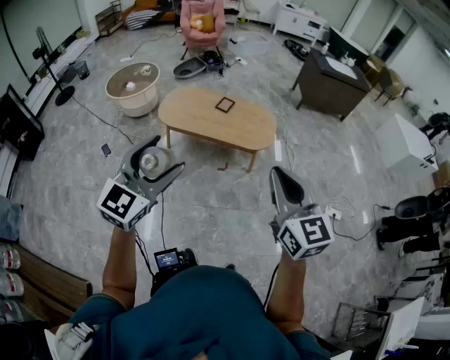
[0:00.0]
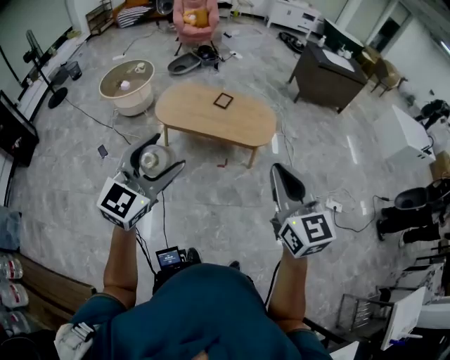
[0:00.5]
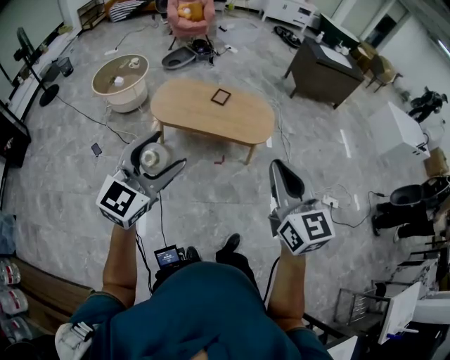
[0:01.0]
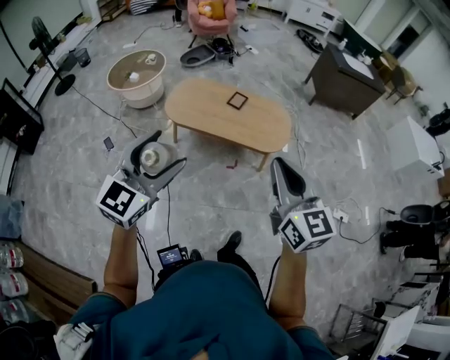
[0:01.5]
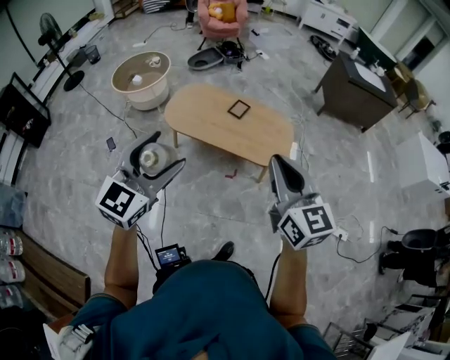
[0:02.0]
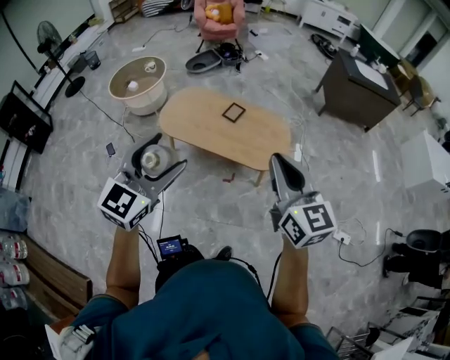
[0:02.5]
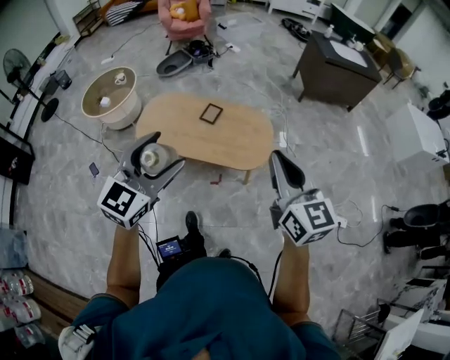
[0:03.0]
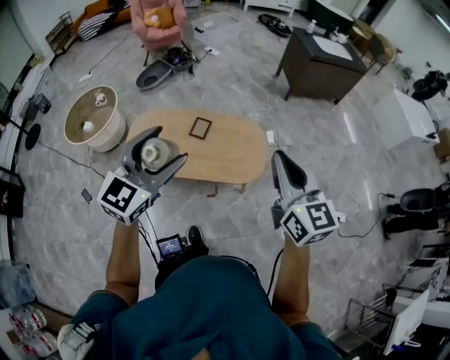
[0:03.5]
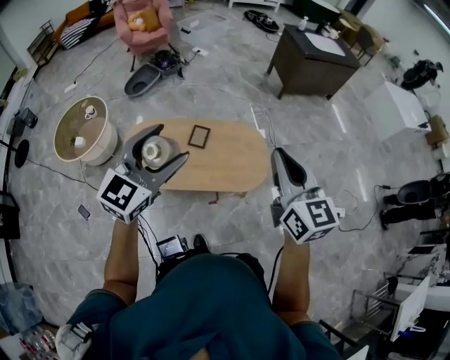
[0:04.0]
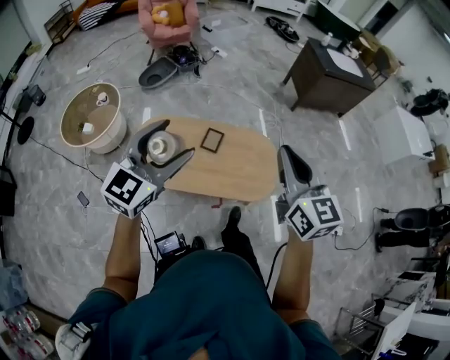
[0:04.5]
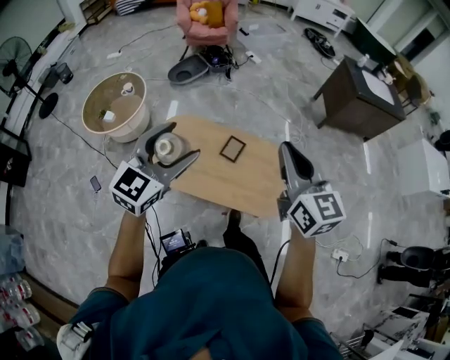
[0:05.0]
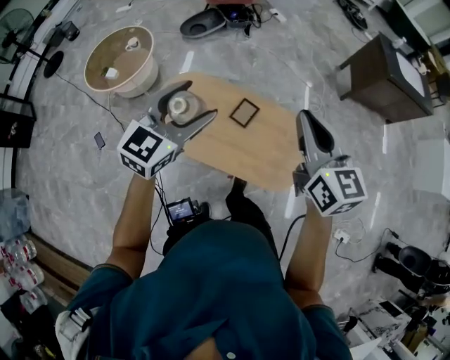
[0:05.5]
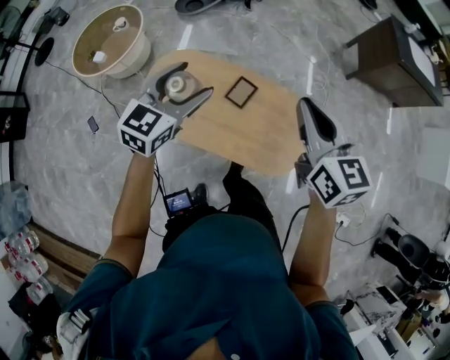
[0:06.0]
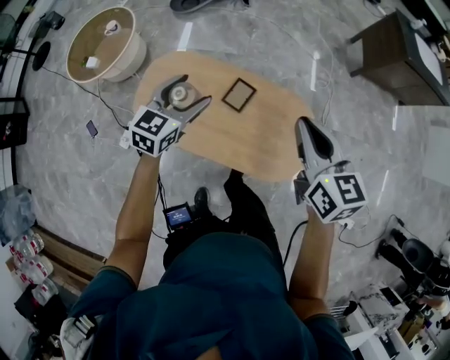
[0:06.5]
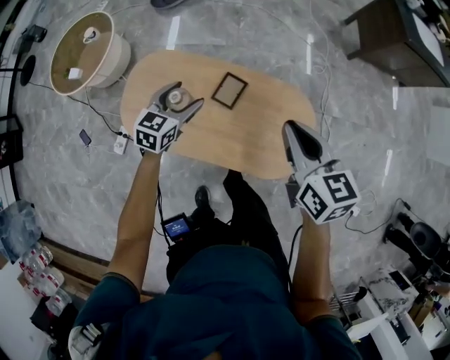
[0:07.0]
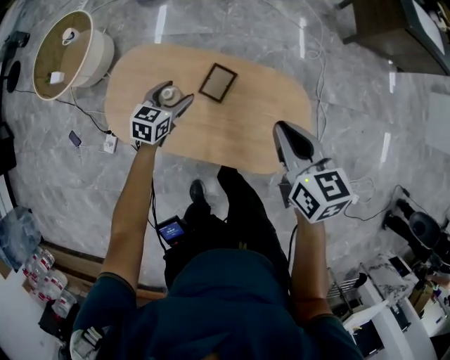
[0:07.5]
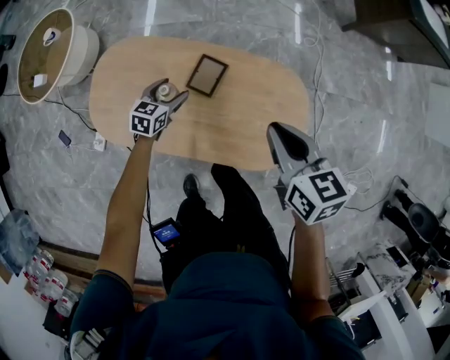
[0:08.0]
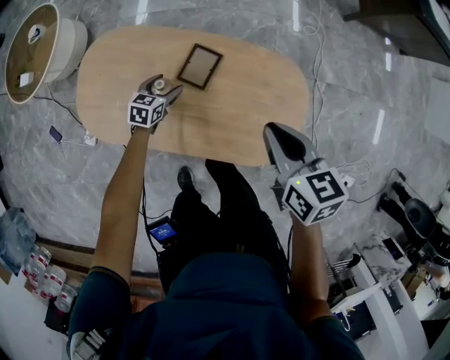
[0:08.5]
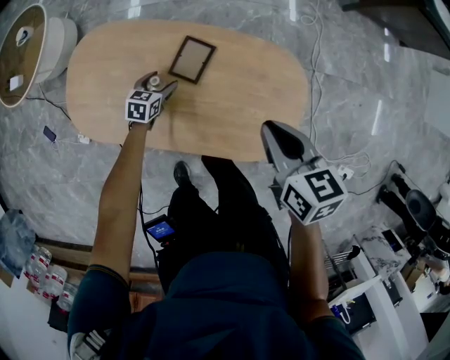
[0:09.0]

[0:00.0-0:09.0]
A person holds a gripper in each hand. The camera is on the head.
0:00.0 to 0:02.0: The two grippers go some 20 cm forward.
0:02.0 to 0:04.5: Both grippers move forward, some 40 cm.
0:04.5 to 0:07.0: The grippers both shift downward and forward by about 40 cm. The right gripper rotates approximately 30 degrees; the left gripper rotates about 40 degrees.
0:07.0 to 0:09.0: The left gripper moves downward, some 35 cm, and rotates some 20 degrees, while the right gripper is displaced downward by about 20 cm.

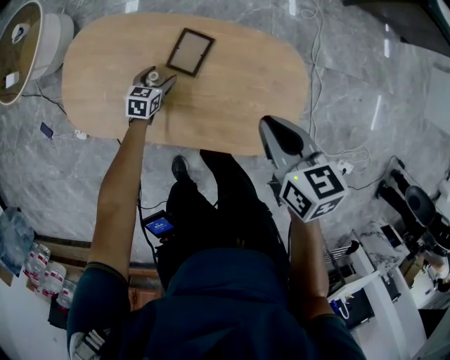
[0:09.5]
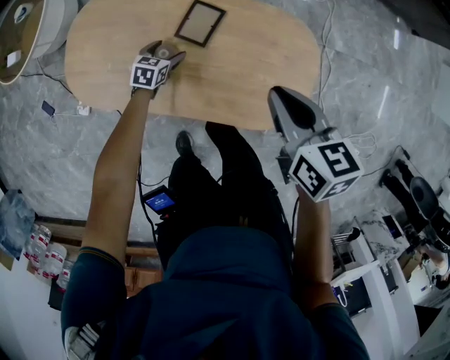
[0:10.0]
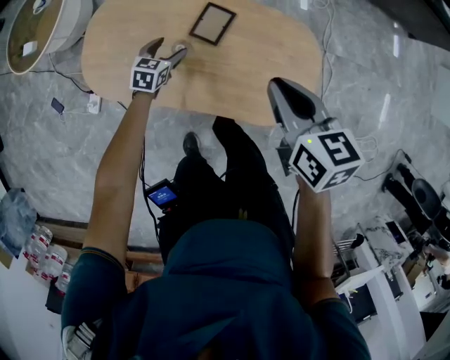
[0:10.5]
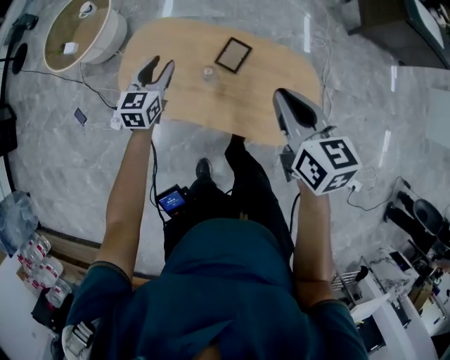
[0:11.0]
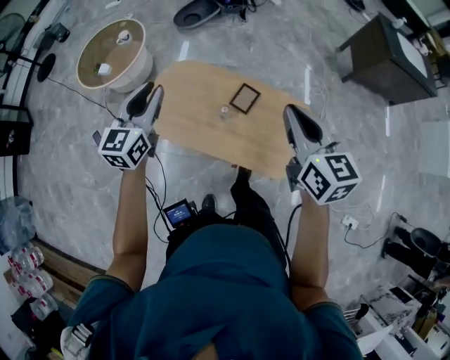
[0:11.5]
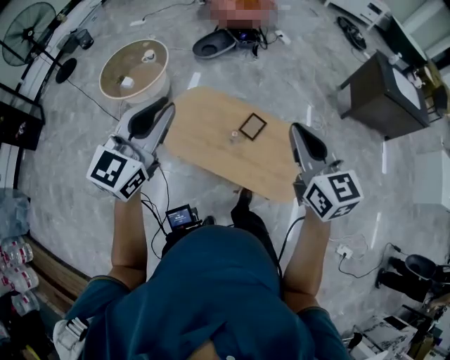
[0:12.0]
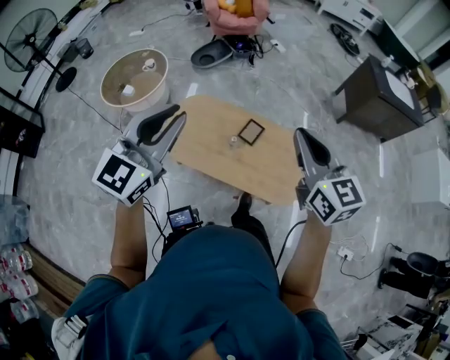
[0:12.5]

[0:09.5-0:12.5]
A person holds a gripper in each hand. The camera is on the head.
0:09.5 to 0:11.0: The right gripper goes roughly 20 cm upward, while the left gripper shifts roughly 35 cm upward, rotates approximately 30 degrees, and closes up.
0:11.0 to 0:12.5: The right gripper is displaced upward by some 25 cm, and turns by some 30 degrees; the left gripper moves upward and backward, about 50 cm, and changes its angle by about 30 degrees.

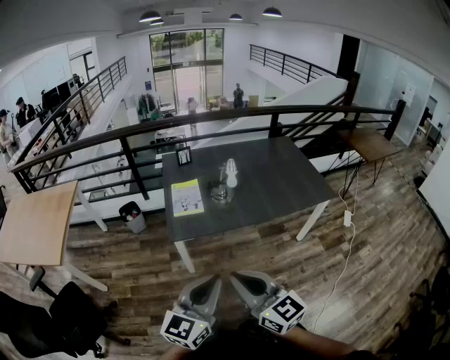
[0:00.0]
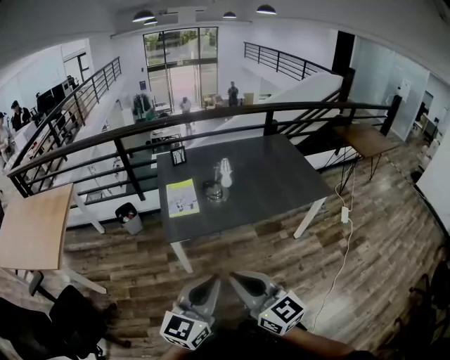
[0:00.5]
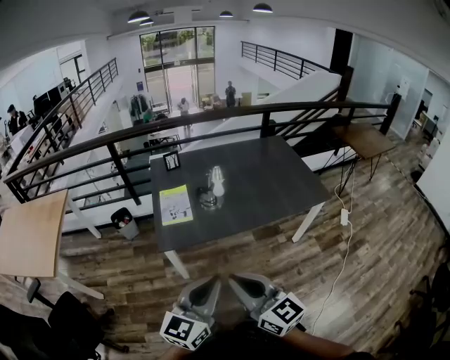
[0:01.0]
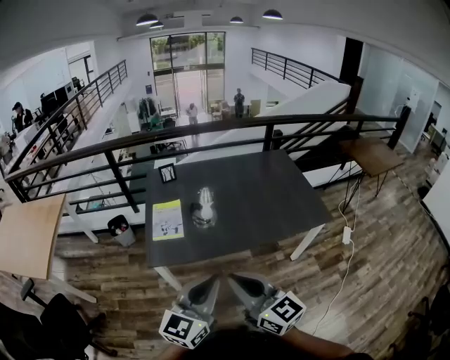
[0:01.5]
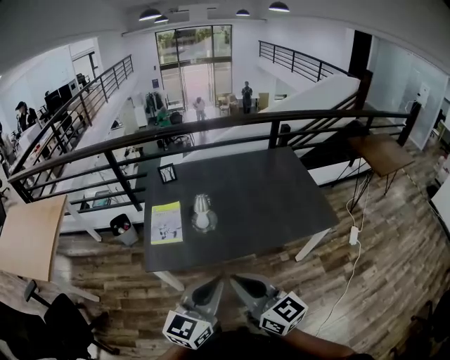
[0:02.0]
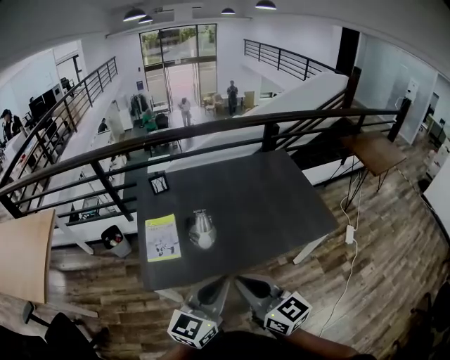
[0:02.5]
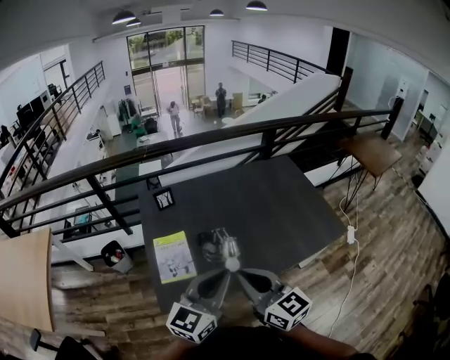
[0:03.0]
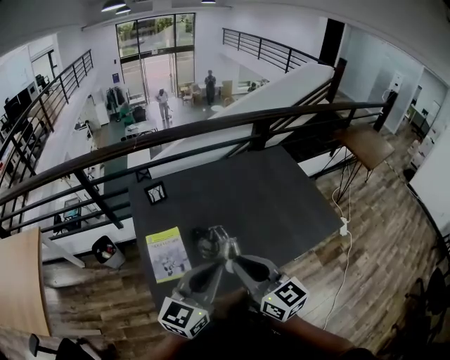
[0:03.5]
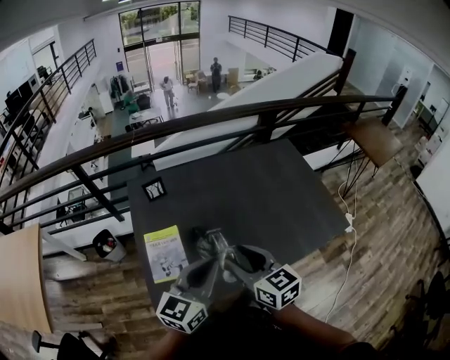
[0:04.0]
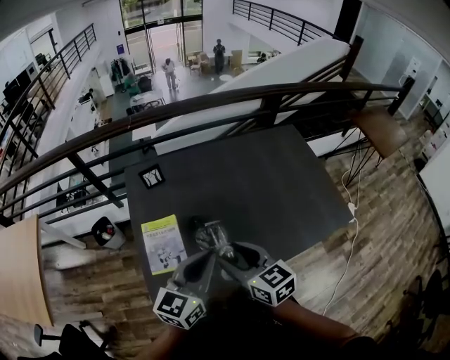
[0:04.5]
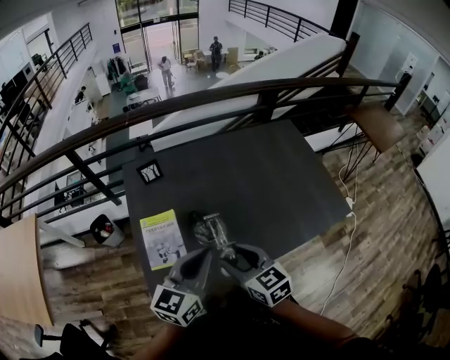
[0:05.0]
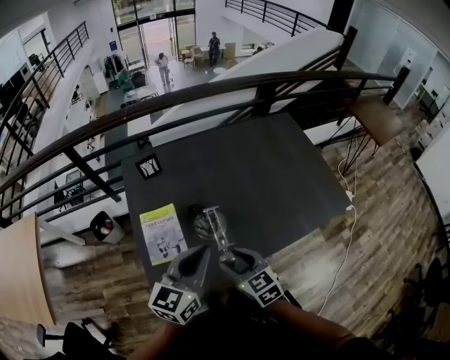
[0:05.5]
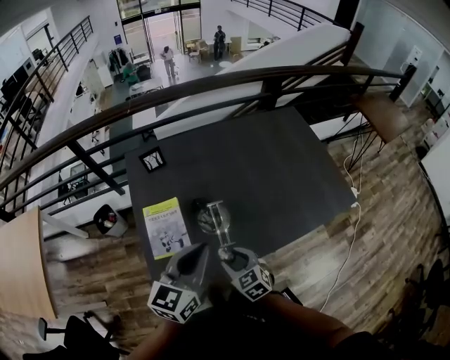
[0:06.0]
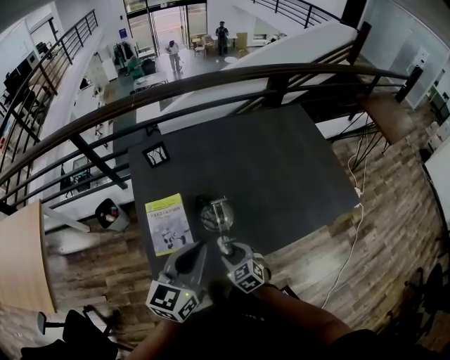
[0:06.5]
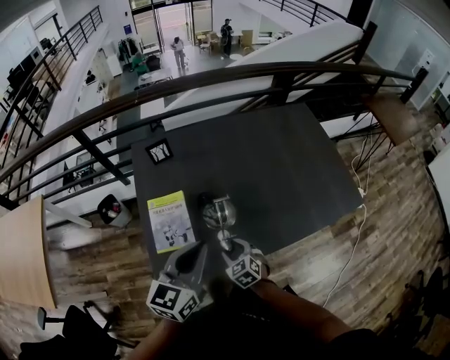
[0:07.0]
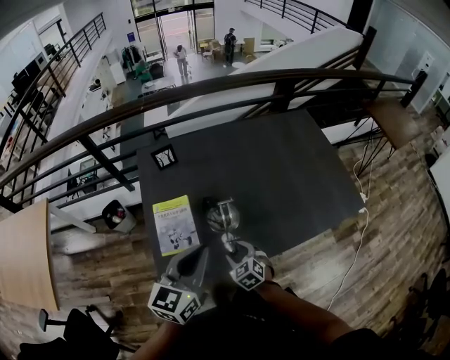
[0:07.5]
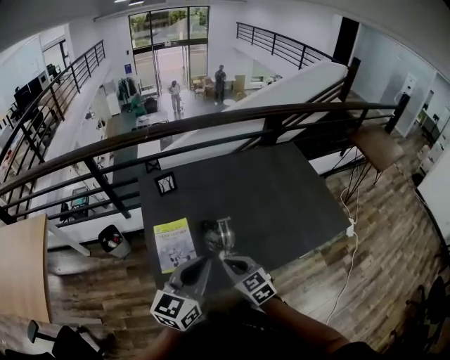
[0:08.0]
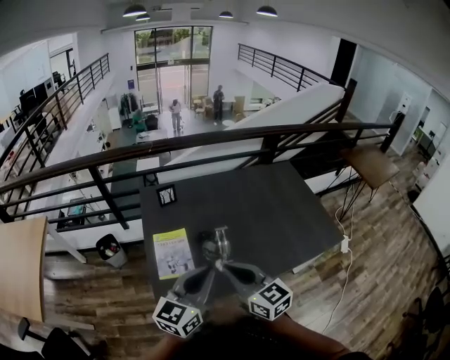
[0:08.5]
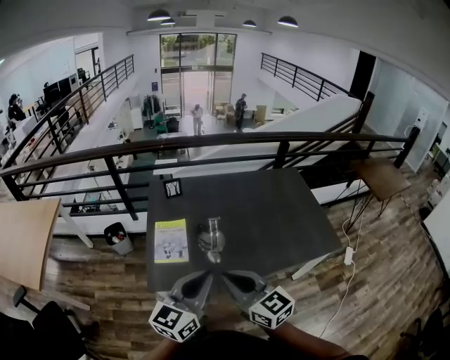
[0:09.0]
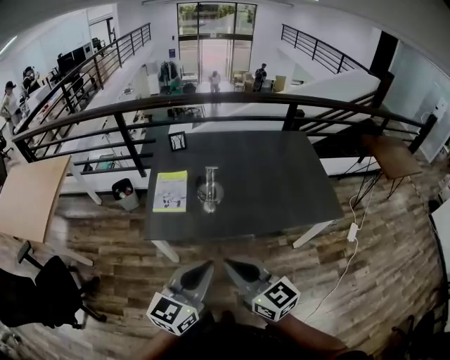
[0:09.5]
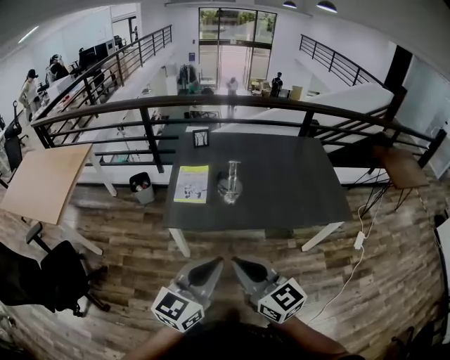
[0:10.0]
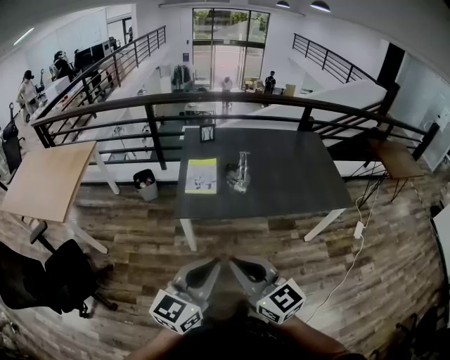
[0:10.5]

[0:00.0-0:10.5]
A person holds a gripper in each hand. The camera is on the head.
0:00.0 to 0:02.0: The grippers both shift forward and to the right by approximately 25 cm.
0:02.0 to 0:04.0: The left gripper moves forward and to the left, about 30 cm. Meanwhile the right gripper moves forward, approximately 30 cm, changes its angle by about 20 degrees, and opens up.
0:04.0 to 0:06.5: The left gripper changes place by some 5 cm. The right gripper shifts about 25 cm downward, and swivels about 30 degrees.
0:06.5 to 0:08.5: The left gripper is displaced backward and upward by approximately 10 cm. The right gripper moves upward, about 30 cm, angles its fingers upward, by some 40 degrees, and closes its fingers.
0:08.5 to 0:10.5: The two grippers go some 35 cm backward.

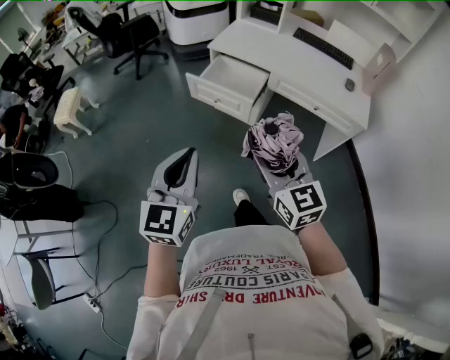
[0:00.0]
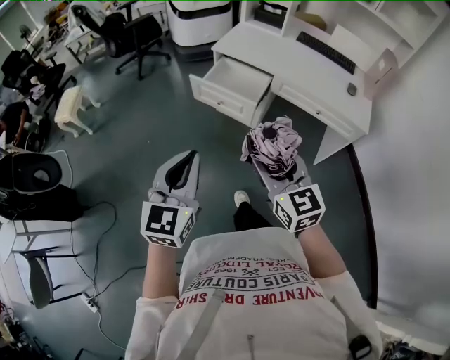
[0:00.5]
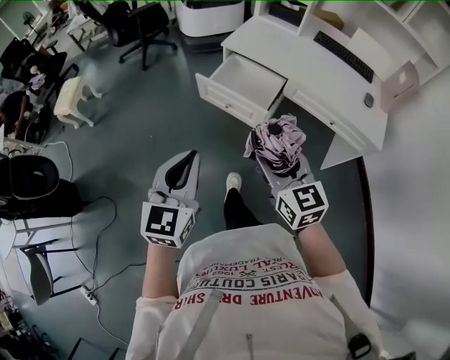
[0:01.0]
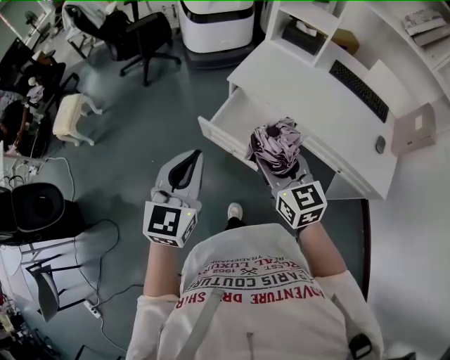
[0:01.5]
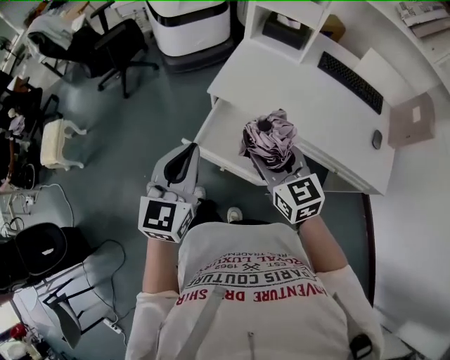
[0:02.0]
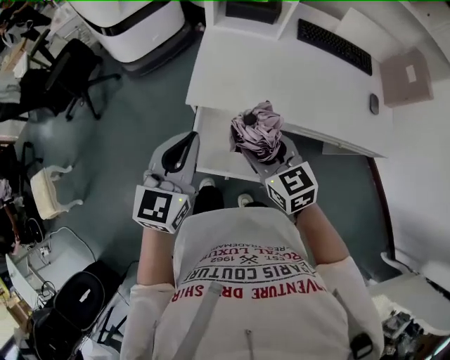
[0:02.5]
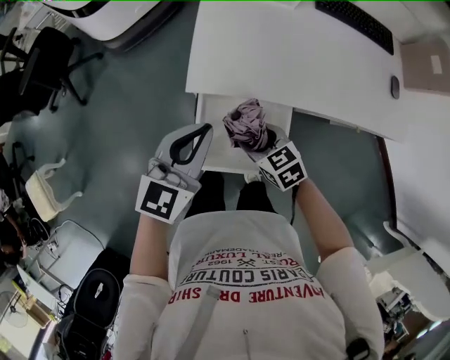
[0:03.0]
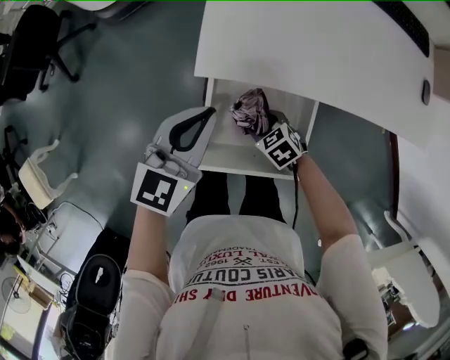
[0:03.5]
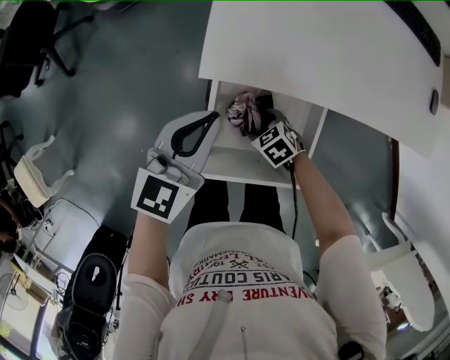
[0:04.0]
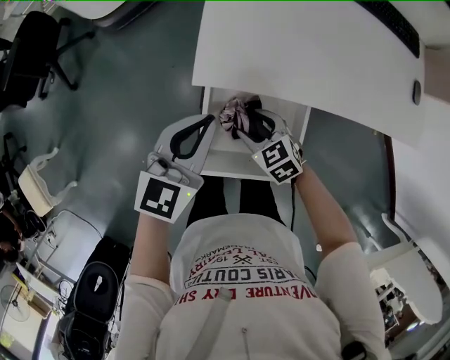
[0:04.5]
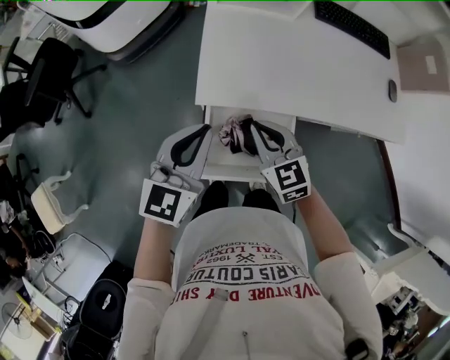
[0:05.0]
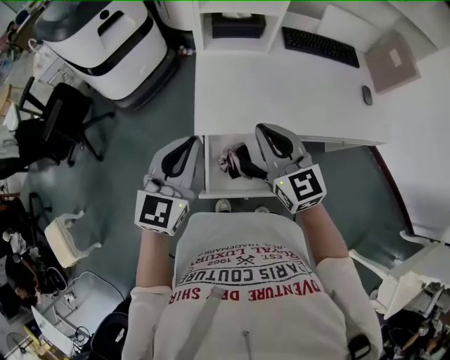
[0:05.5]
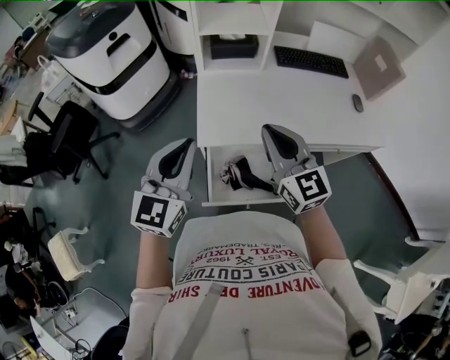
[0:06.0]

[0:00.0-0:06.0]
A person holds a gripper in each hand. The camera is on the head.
0:00.0 to 0:02.0: The two grippers travel together, forward, some 40 cm.
0:02.0 to 0:04.0: The right gripper goes roughly 50 cm downward, and angles its fingers downward, by roughly 50 degrees, while the left gripper goes approximately 35 cm downward and forward, and turns by approximately 40 degrees.
0:04.0 to 0:06.0: The left gripper is displaced upward by roughly 30 cm, and swivels about 20 degrees; the right gripper travels upward by some 50 cm, angles its fingers upward, by roughly 60 degrees, and closes its fingers.
